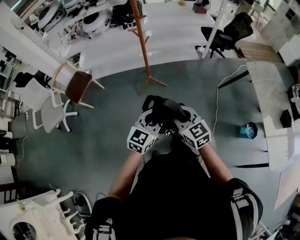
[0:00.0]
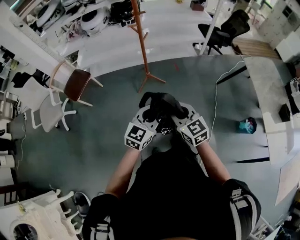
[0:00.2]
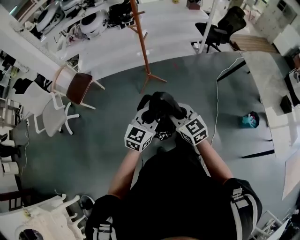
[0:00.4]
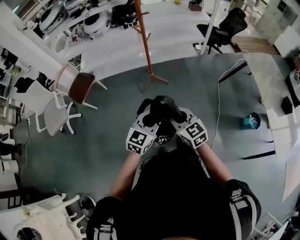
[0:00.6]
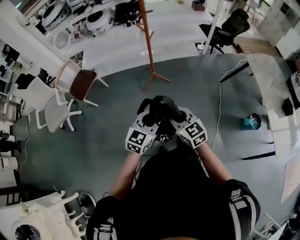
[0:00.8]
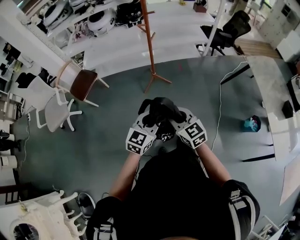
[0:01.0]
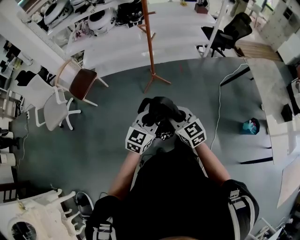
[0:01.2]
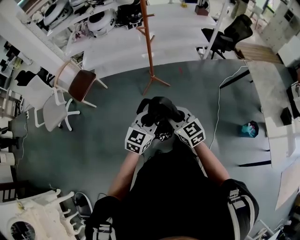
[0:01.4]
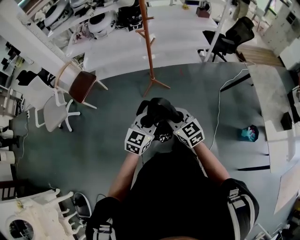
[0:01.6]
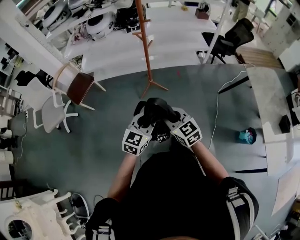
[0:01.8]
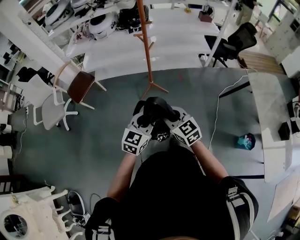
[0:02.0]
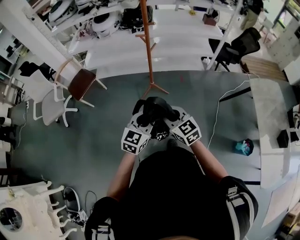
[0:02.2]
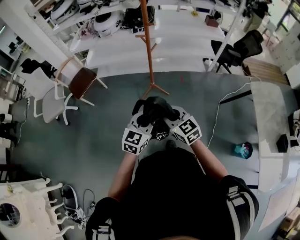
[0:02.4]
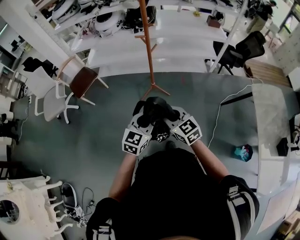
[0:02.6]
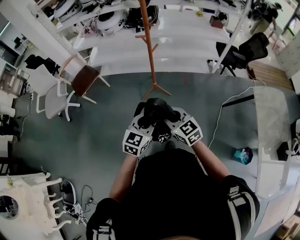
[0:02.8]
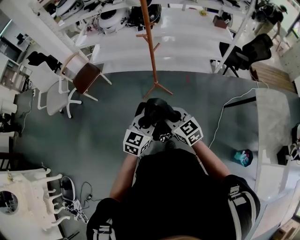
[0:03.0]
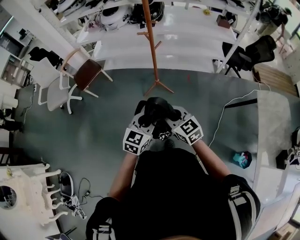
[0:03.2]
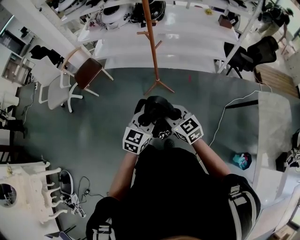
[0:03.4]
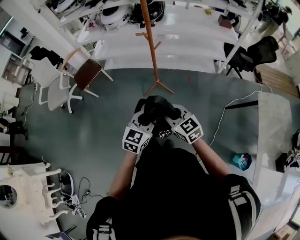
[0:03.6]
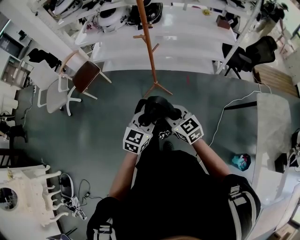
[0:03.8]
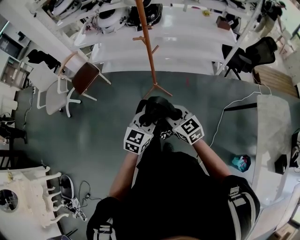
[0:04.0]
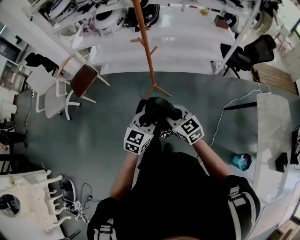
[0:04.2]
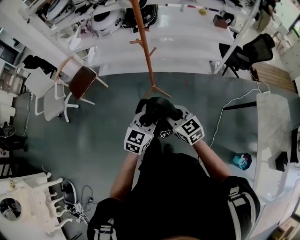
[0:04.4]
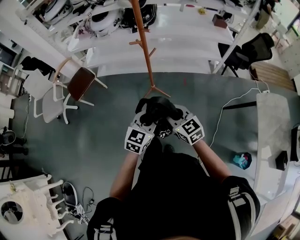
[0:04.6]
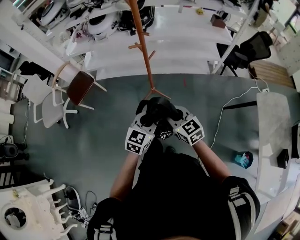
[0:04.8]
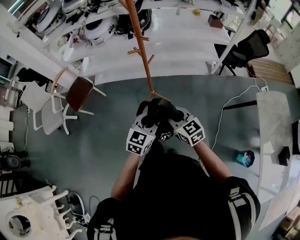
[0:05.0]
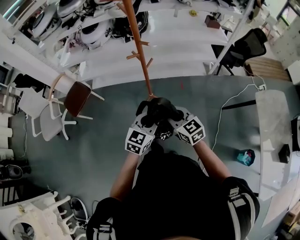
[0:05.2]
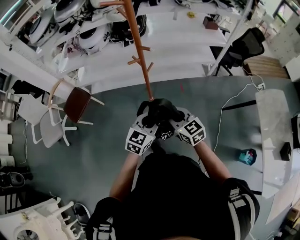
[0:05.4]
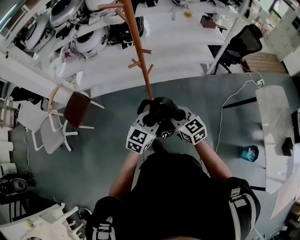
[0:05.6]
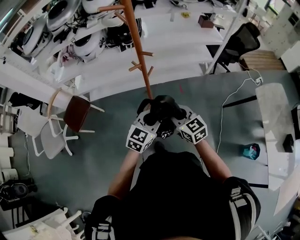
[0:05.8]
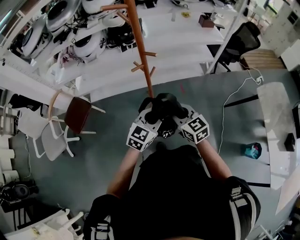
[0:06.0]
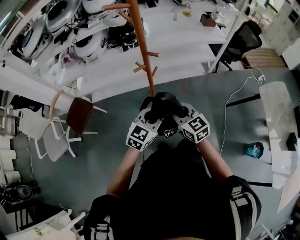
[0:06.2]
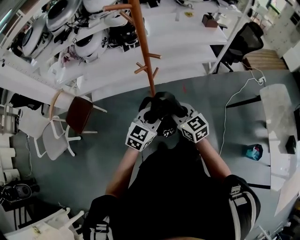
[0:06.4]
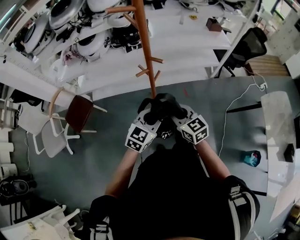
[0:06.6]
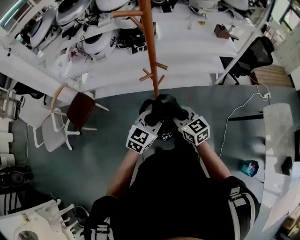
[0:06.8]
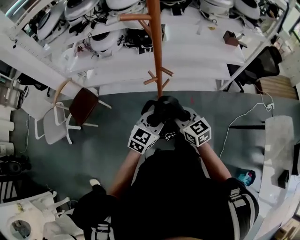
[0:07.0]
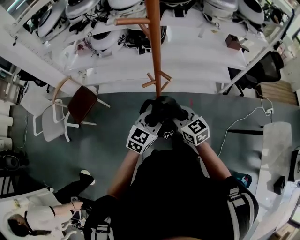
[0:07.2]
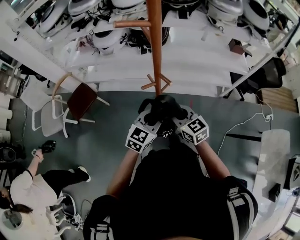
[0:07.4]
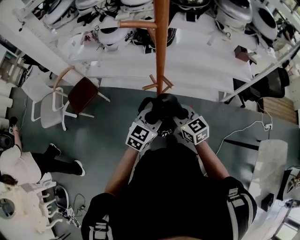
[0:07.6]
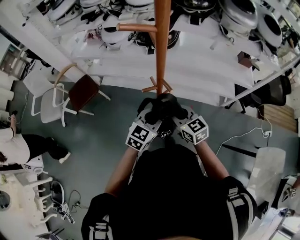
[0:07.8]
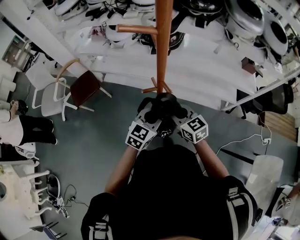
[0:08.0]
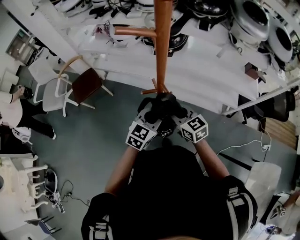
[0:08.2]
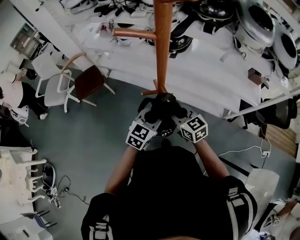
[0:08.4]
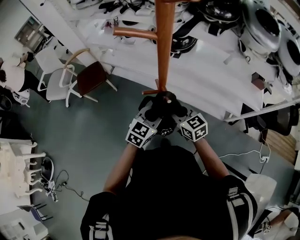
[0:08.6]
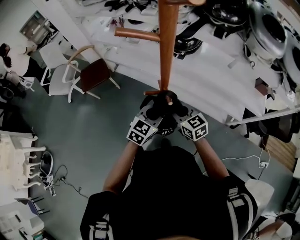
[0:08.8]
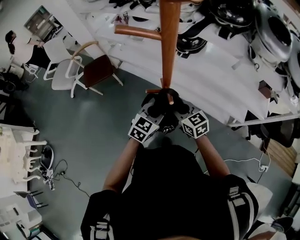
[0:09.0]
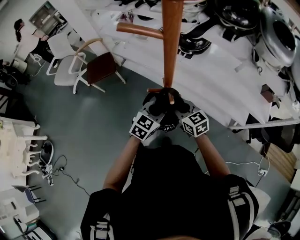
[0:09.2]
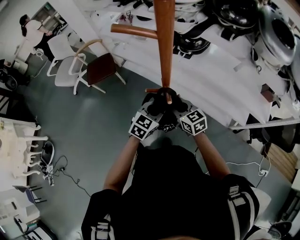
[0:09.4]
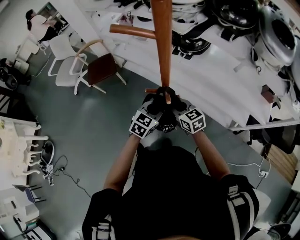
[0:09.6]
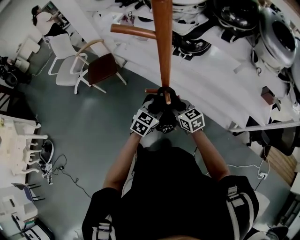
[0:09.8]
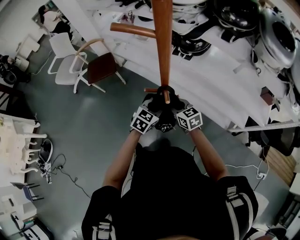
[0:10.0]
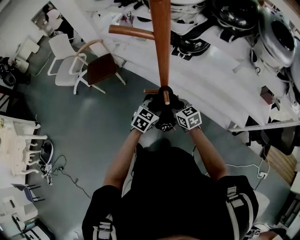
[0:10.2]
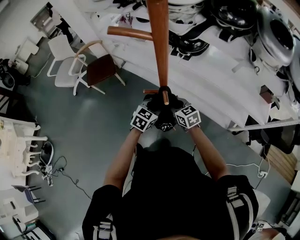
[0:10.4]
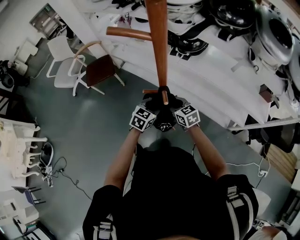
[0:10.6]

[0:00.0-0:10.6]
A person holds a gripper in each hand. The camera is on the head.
0:00.0 to 0:01.6: The grippers both shift to the left by about 5 cm.
0:01.6 to 0:03.0: Both grippers travel together to the right and forward, about 15 cm.
0:03.0 to 0:04.6: Both grippers move forward, approximately 15 cm.
0:04.6 to 0:06.0: Both grippers travel together forward and to the left, about 20 cm. The left gripper turns by some 20 degrees.
0:06.0 to 0:07.6: Both grippers move forward, about 20 cm.
0:07.6 to 0:09.0: The two grippers go about 10 cm forward. The right gripper swivels some 20 degrees.
0:09.0 to 0:10.6: Both grippers move downward, some 5 cm.

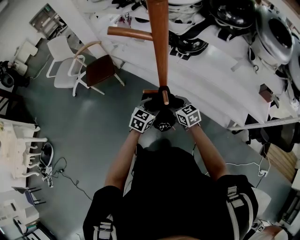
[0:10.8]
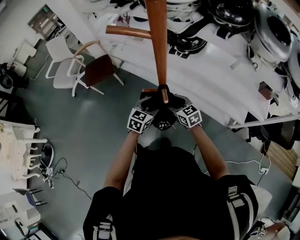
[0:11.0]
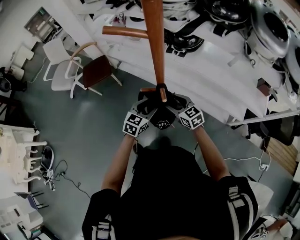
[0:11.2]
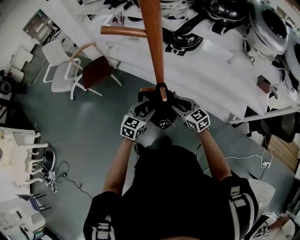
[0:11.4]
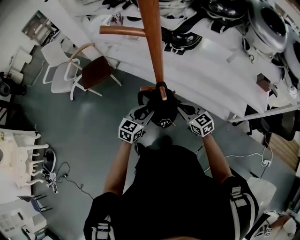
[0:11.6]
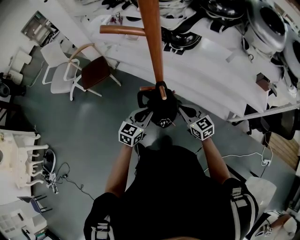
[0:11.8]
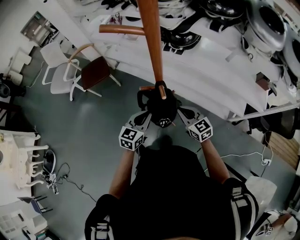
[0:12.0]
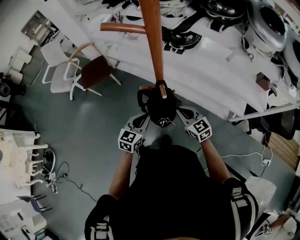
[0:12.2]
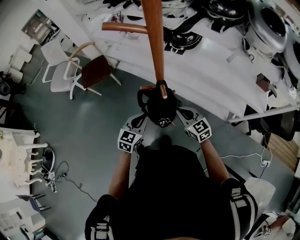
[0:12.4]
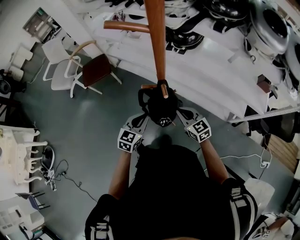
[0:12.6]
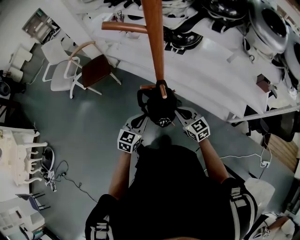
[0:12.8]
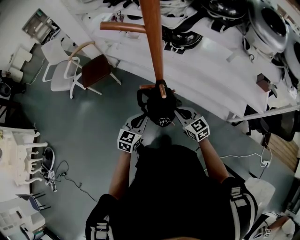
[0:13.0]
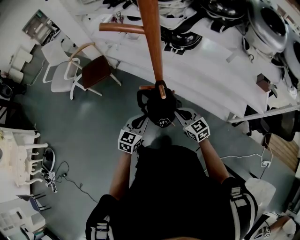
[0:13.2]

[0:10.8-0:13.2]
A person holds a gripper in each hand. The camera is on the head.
0:10.8 to 0:12.0: The right gripper heads backward and to the right, covering about 10 cm, and closes. Meanwhile the left gripper heads backward, covering about 10 cm, and closes its fingers.
0:12.0 to 0:13.2: The grippers move only a little.

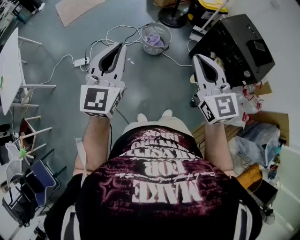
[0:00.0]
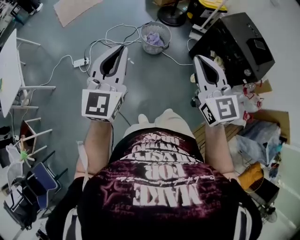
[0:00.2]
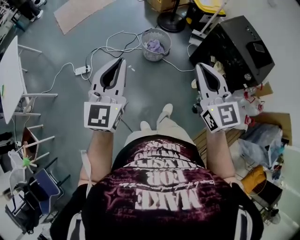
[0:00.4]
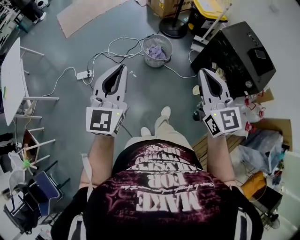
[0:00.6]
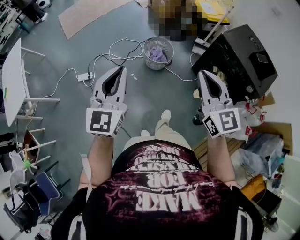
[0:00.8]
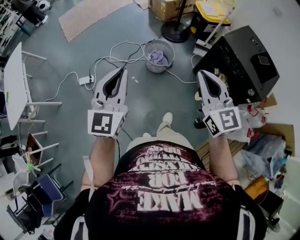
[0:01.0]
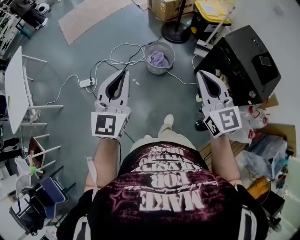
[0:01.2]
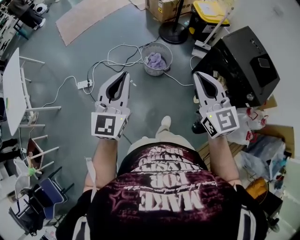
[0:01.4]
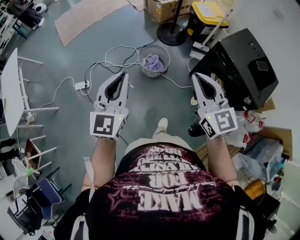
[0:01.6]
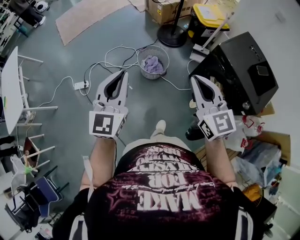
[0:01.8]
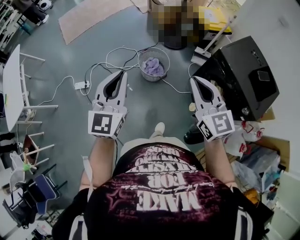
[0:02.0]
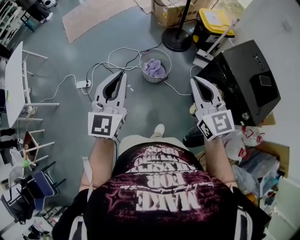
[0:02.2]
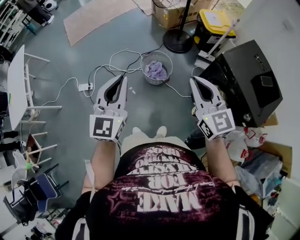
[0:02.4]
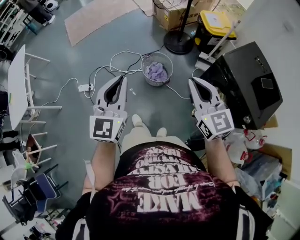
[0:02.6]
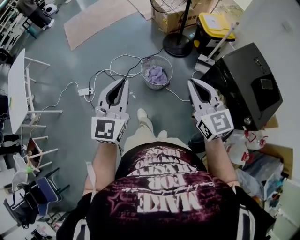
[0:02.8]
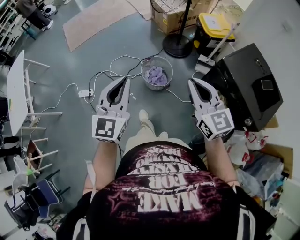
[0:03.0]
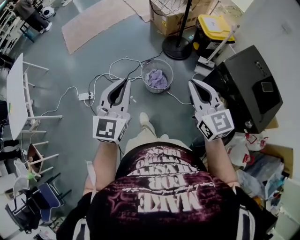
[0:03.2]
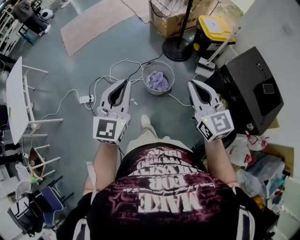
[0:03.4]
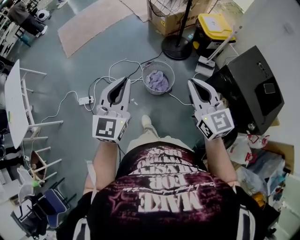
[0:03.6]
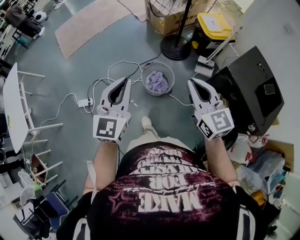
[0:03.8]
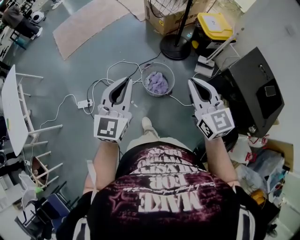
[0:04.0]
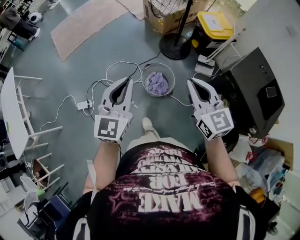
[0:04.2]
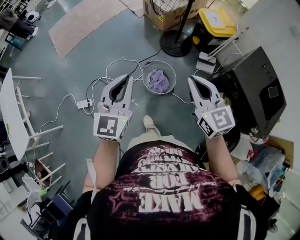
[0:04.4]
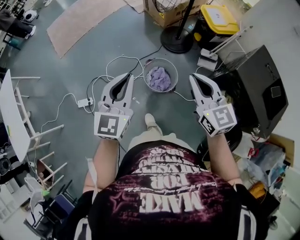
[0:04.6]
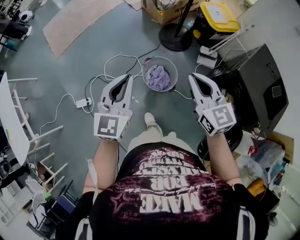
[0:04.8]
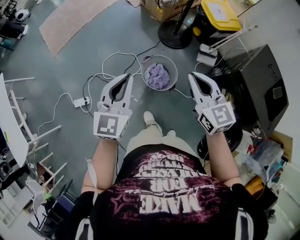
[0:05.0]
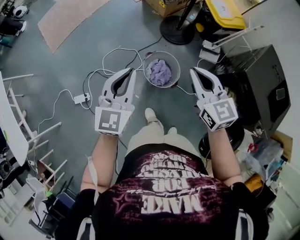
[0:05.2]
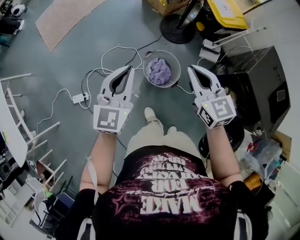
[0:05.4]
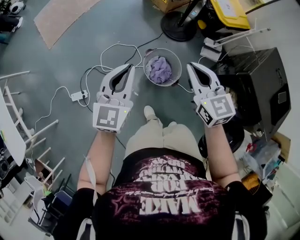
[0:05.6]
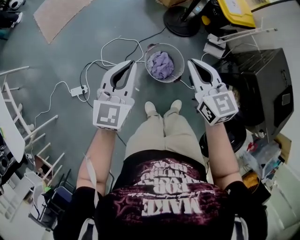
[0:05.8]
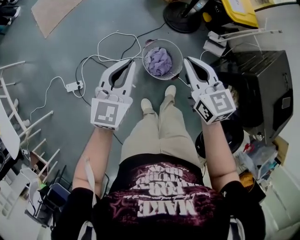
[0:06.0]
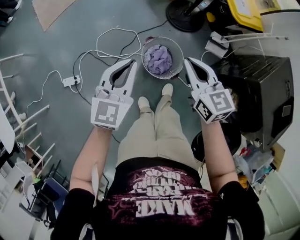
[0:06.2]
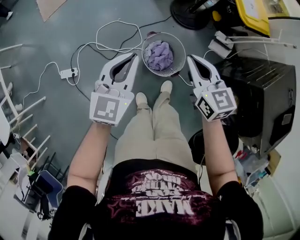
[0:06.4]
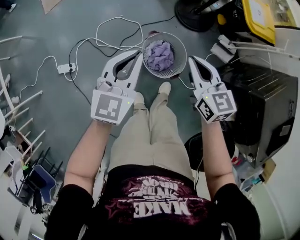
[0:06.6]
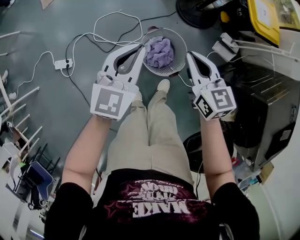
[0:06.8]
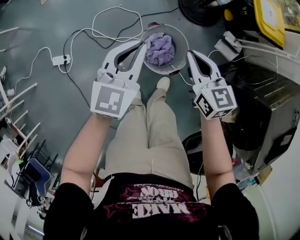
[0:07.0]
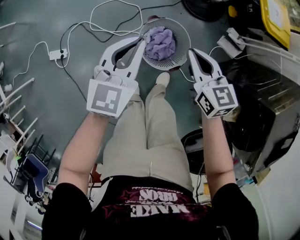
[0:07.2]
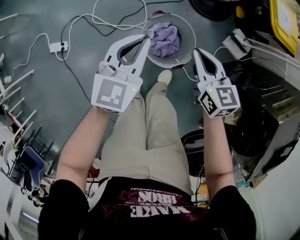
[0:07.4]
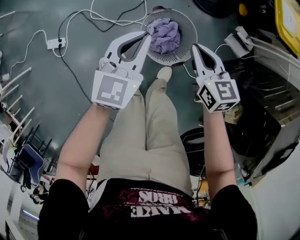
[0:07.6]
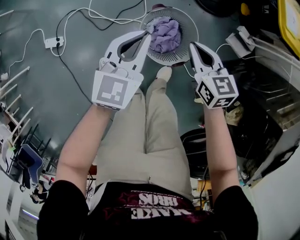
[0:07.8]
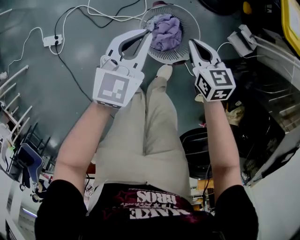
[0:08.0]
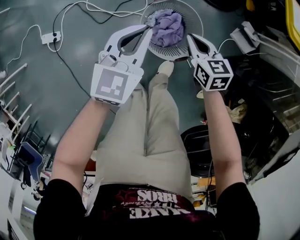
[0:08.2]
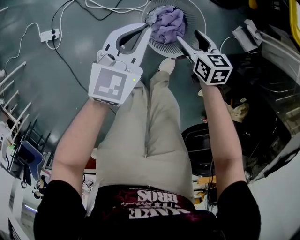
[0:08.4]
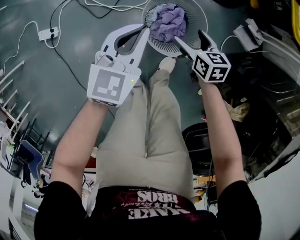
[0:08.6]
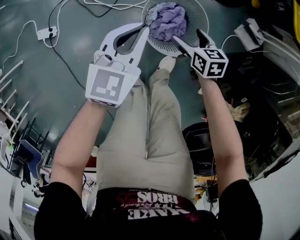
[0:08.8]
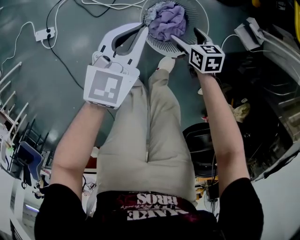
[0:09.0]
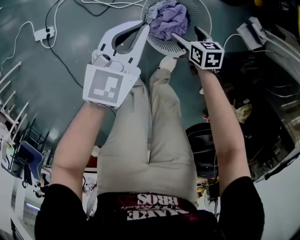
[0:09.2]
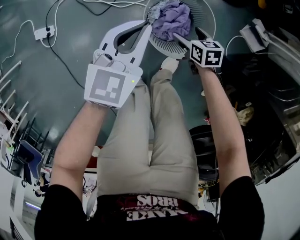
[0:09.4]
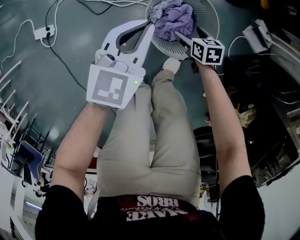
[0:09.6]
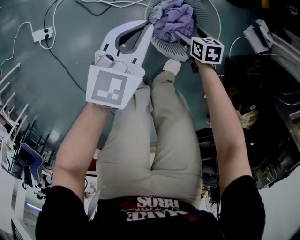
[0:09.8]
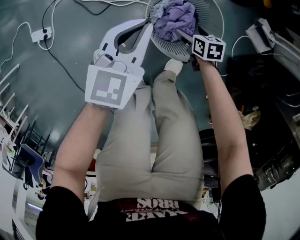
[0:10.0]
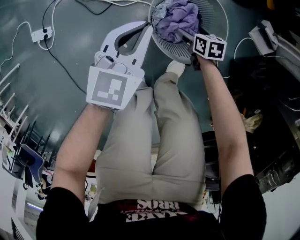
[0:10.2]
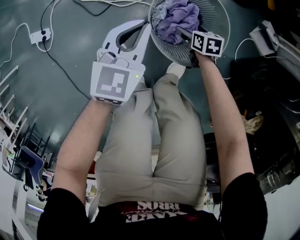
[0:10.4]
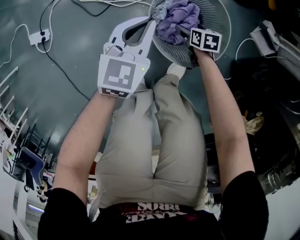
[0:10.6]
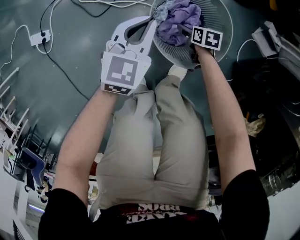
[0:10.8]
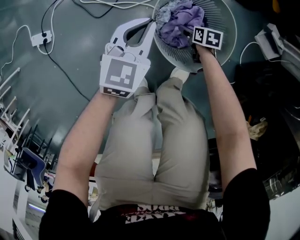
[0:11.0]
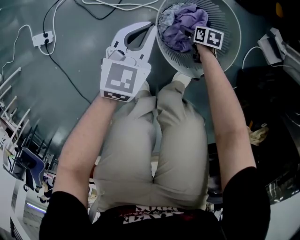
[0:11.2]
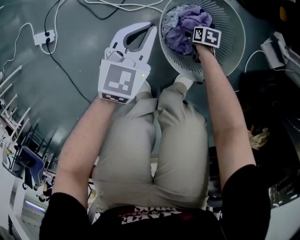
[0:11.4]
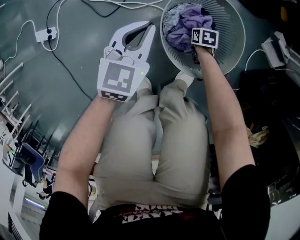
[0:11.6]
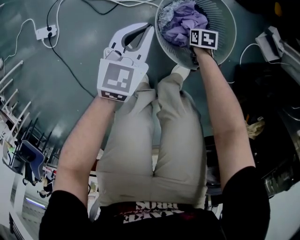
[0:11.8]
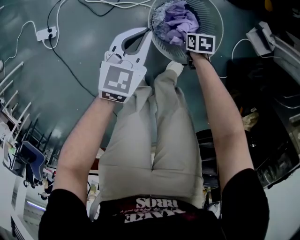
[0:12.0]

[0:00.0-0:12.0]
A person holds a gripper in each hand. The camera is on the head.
0:00.0 to 0:01.6: Both grippers move forward and to the right, about 15 cm.
0:01.6 to 0:03.0: The two grippers go roughly 10 cm forward.
0:03.0 to 0:04.4: Both grippers move forward, roughly 20 cm.
0:04.4 to 0:06.0: The right gripper heads downward, forward and to the left, covering about 20 cm. Meanwhile the left gripper goes some 20 cm downward and forward.
0:06.0 to 0:07.6: Both grippers move downward, about 25 cm.
0:07.6 to 0:09.0: The right gripper goes about 25 cm downward, turns by approximately 20 degrees, and opens, while the left gripper travels downward by about 10 cm.
0:09.0 to 0:10.4: The two grippers go about 15 cm downward.
0:10.4 to 0:12.0: The right gripper travels downward and back again, roughly 15 cm each way, and closes. Meanwhile the left gripper travels downward and back again, some 5 cm each way.
